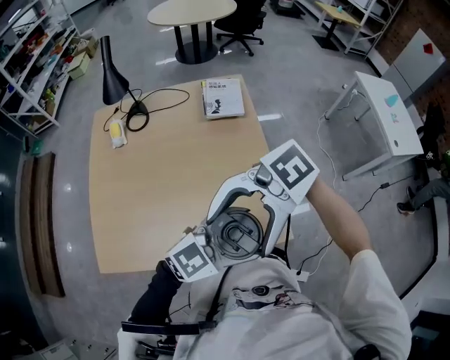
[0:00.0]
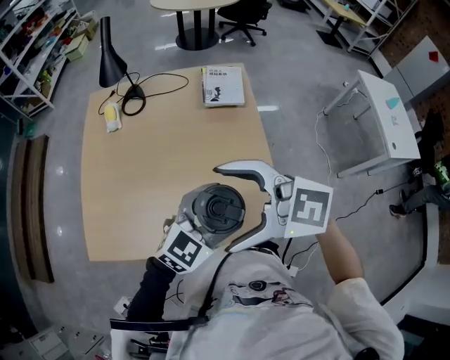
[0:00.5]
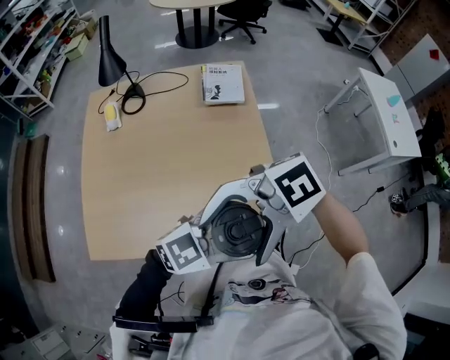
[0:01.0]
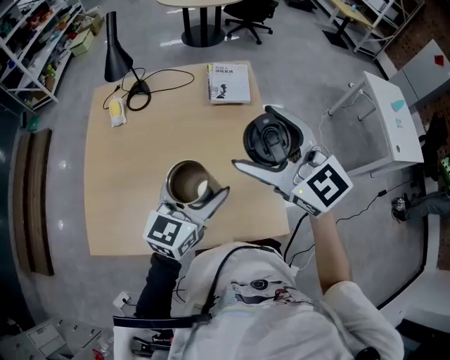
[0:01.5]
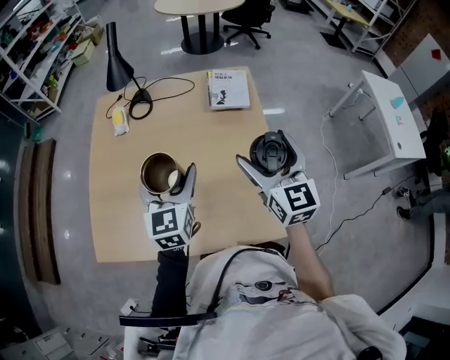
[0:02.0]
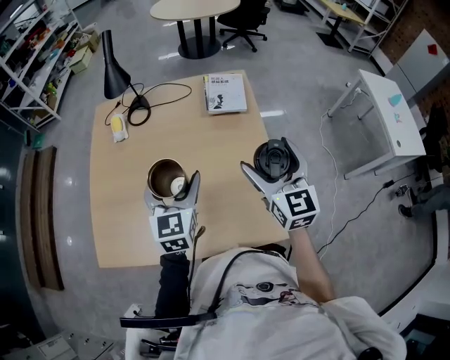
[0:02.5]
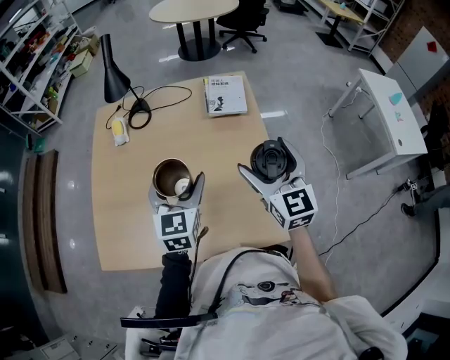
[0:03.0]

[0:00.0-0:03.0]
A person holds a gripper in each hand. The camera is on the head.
0:00.0 to 0:01.5: The right gripper shifts by about 20 cm, and swivels approximately 90 degrees, while the left gripper shifts by roughly 15 cm, and swivels approximately 50 degrees.
0:01.5 to 0:03.0: The left gripper shifts some 10 cm forward and to the left, and swivels roughly 30 degrees, while the right gripper goes about 10 cm downward and to the right, and turns by approximately 30 degrees.

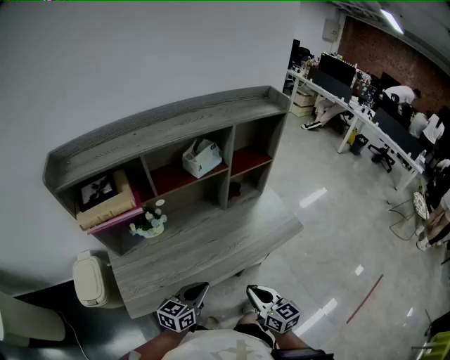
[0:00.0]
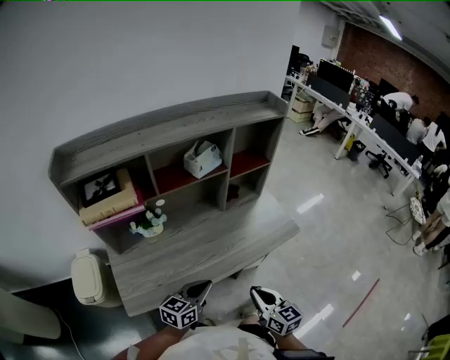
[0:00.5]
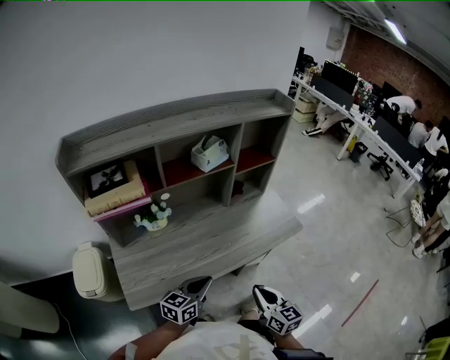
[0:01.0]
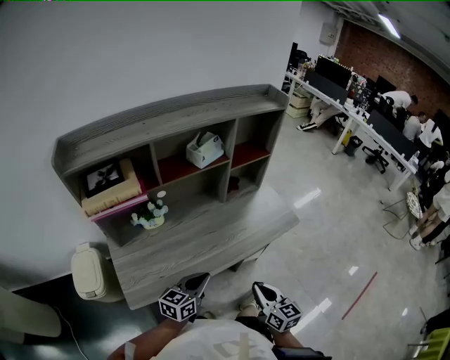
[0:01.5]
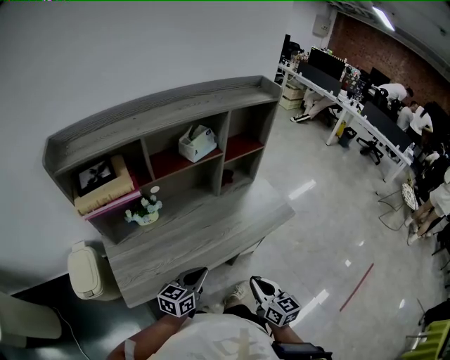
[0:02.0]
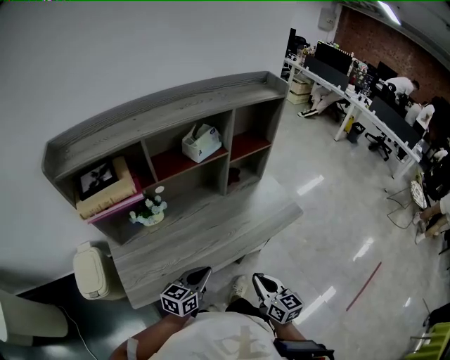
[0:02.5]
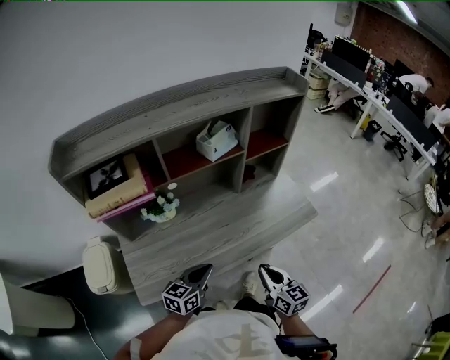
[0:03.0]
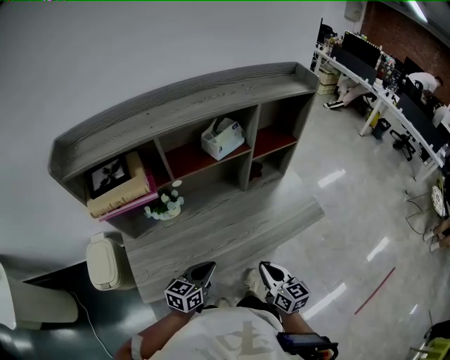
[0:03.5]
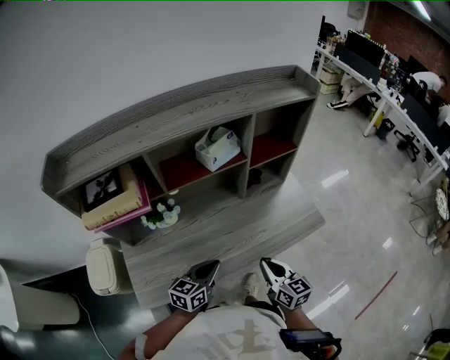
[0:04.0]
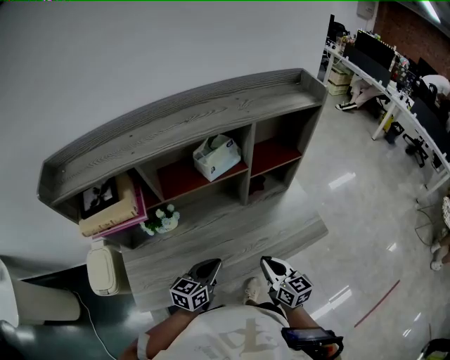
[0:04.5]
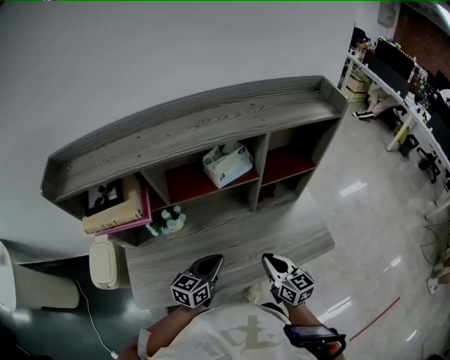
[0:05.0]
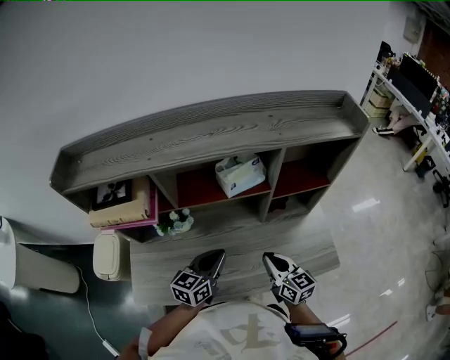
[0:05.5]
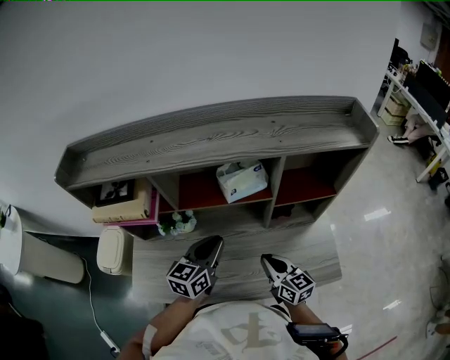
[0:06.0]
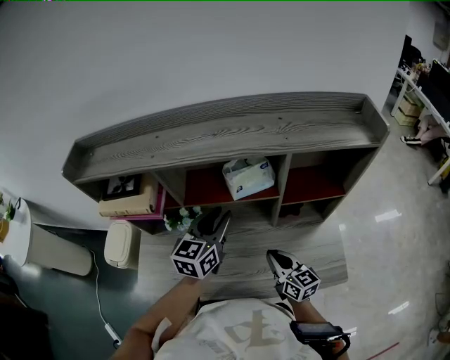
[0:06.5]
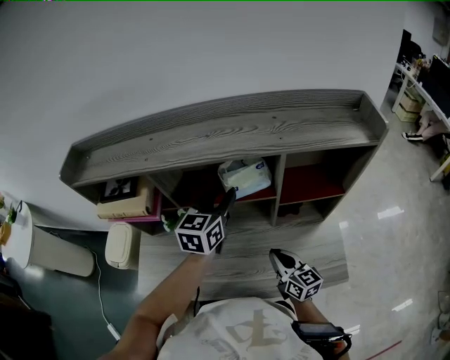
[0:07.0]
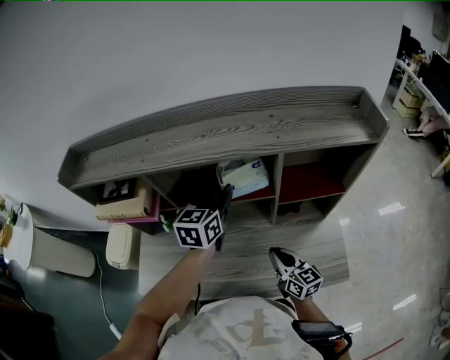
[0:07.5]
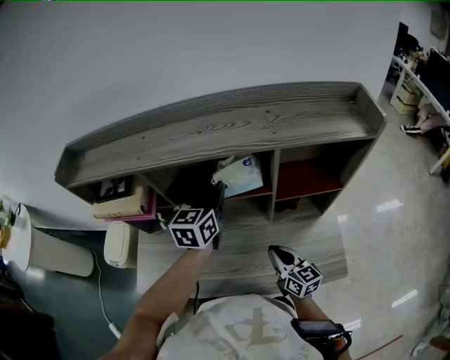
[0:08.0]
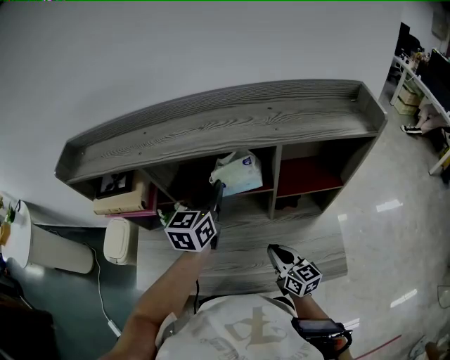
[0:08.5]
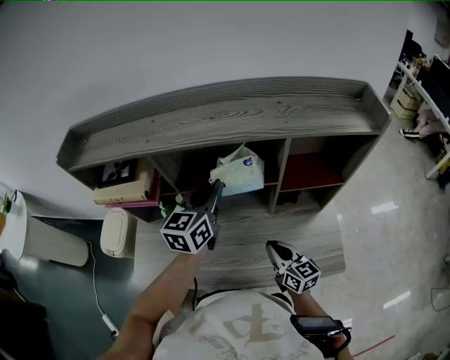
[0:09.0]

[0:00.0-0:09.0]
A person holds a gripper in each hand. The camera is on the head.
0:00.0 to 0:02.0: The grippers stay close to where they were, moving slightly.
0:02.0 to 0:04.5: The two grippers go about 20 cm forward.
0:04.5 to 0:07.0: The right gripper moves approximately 15 cm, and turns by some 20 degrees. Meanwhile the left gripper ends up approximately 30 cm from where it was, changes its angle by roughly 30 degrees, and opens.
0:07.0 to 0:09.0: The left gripper closes.

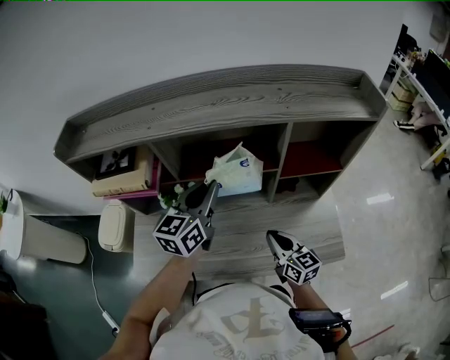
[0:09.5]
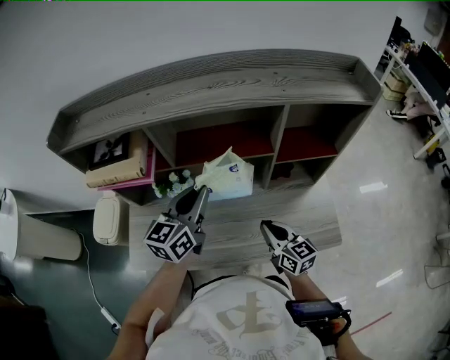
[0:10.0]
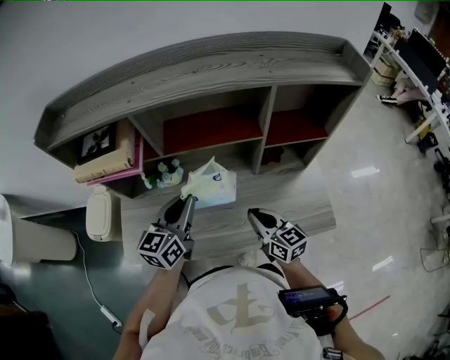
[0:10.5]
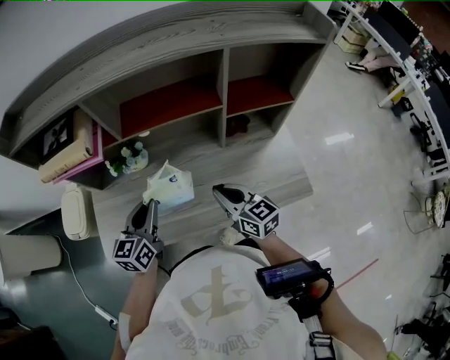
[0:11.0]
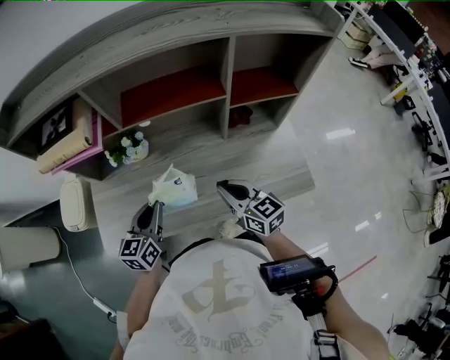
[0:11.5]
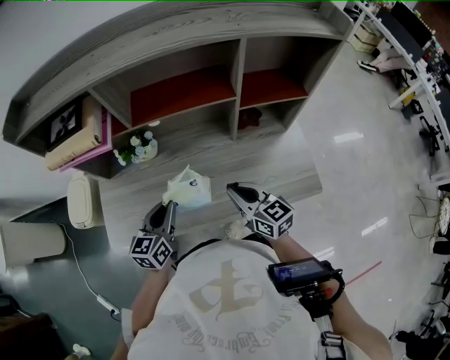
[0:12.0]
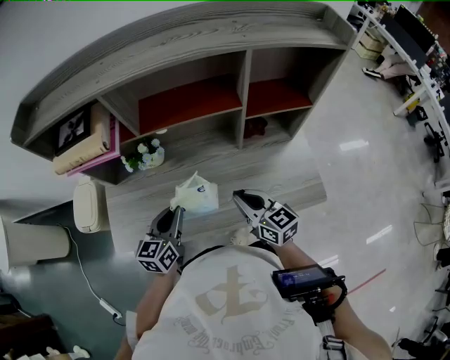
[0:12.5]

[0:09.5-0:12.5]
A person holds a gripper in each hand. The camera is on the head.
0:09.5 to 0:11.0: The left gripper goes approximately 20 cm downward, backward and to the left. Meanwhile the right gripper ends up roughly 5 cm from where it was.
0:11.0 to 0:12.5: The left gripper changes place by approximately 5 cm.

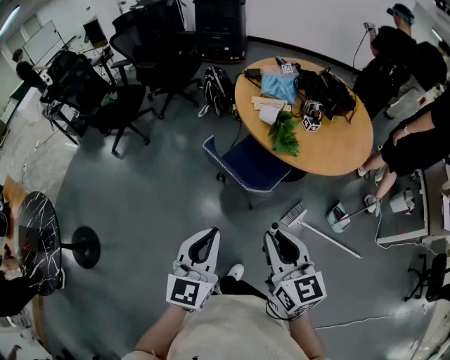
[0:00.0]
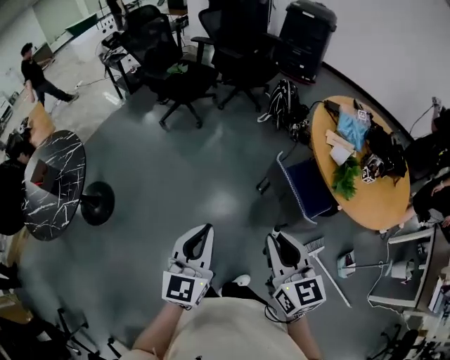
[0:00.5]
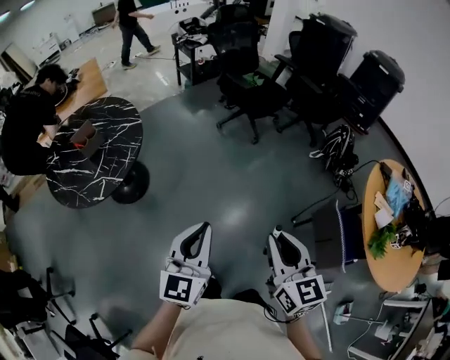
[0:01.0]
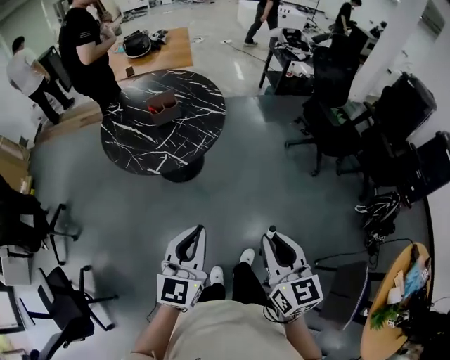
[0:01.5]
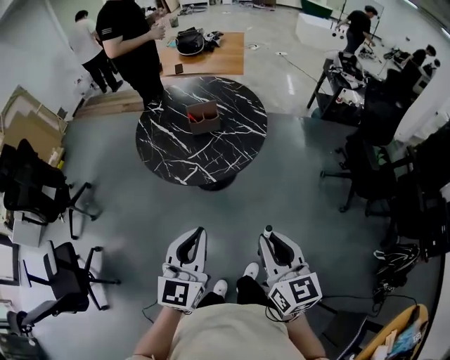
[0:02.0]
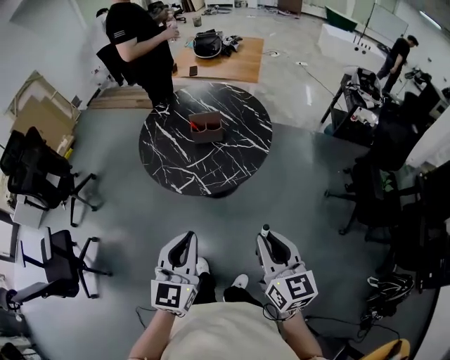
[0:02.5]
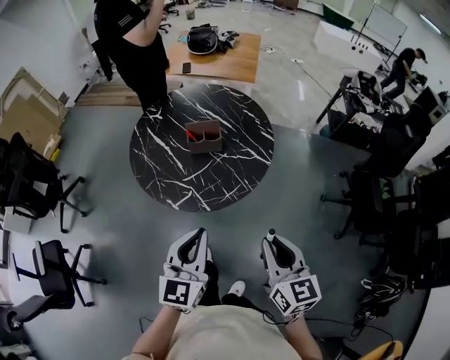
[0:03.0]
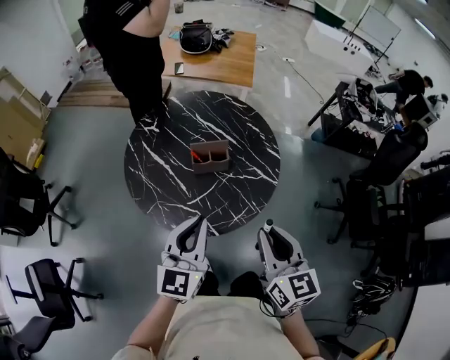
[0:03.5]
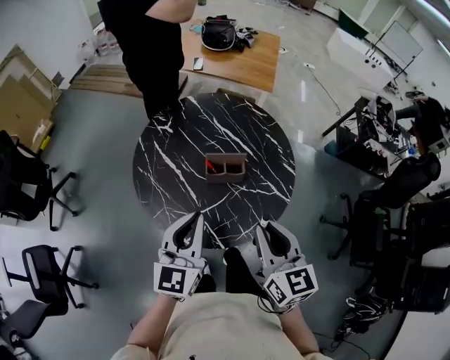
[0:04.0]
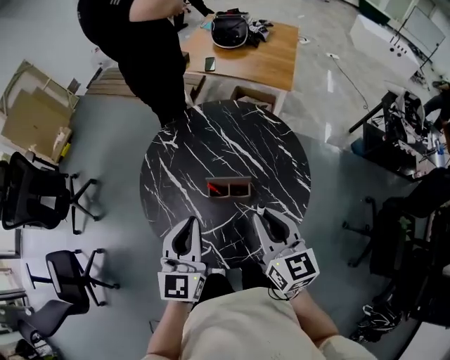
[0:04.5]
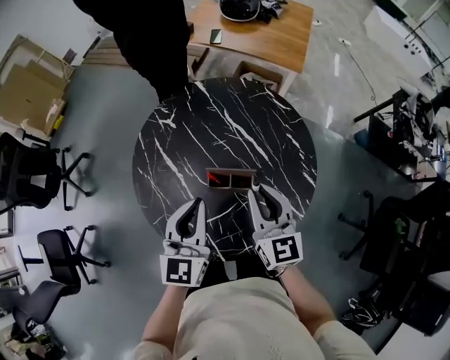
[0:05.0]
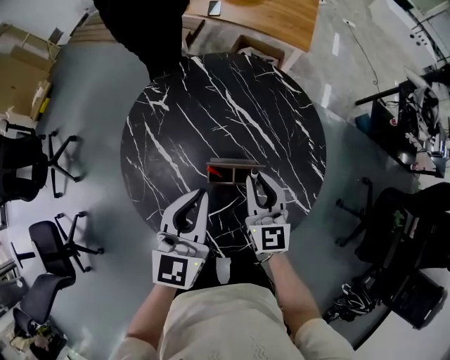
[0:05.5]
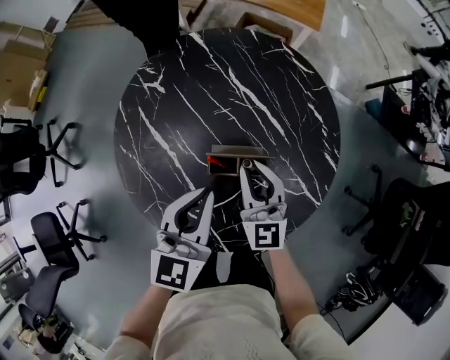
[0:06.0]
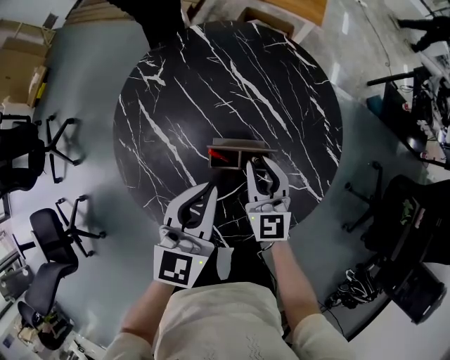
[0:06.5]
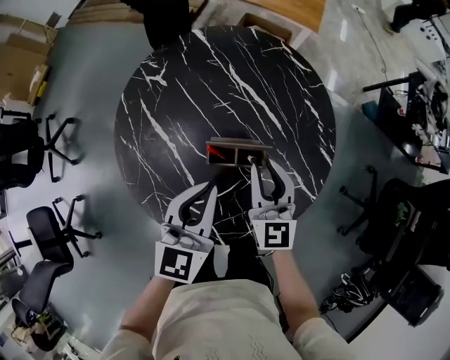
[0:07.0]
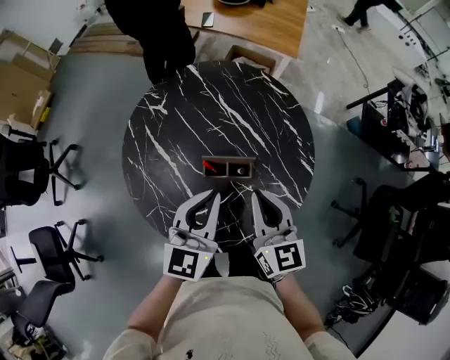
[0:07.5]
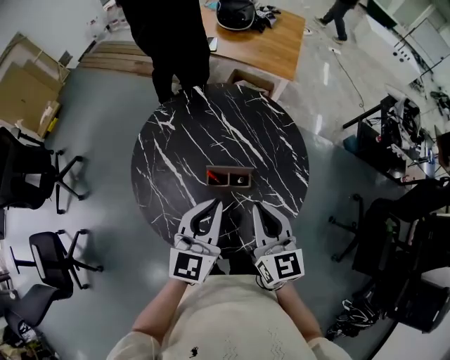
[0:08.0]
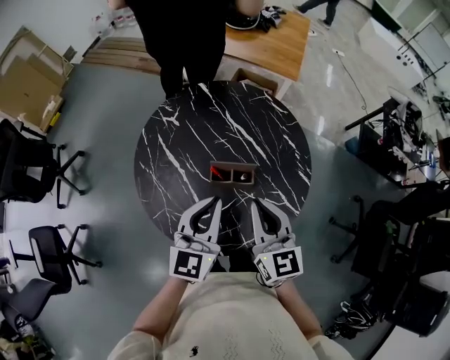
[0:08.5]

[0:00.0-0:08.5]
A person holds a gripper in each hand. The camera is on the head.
0:00.0 to 0:02.0: The two grippers travel together, approximately 80 cm. The right gripper changes its angle by some 80 degrees, while the left gripper rotates some 80 degrees.
0:02.0 to 0:04.0: The two grippers travel together, forward, about 40 cm.
0:04.0 to 0:06.5: The right gripper travels forward and downward by roughly 35 cm. The left gripper travels forward and downward by roughly 25 cm.
0:06.5 to 0:08.5: The left gripper shifts approximately 15 cm upward and backward, while the right gripper heads upward and backward, covering approximately 20 cm.

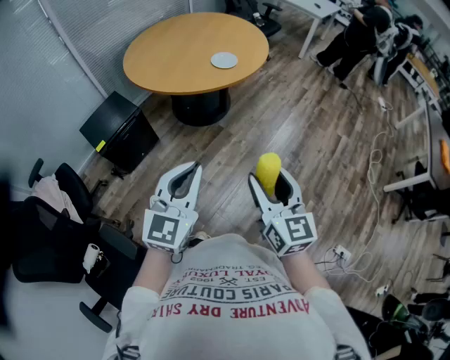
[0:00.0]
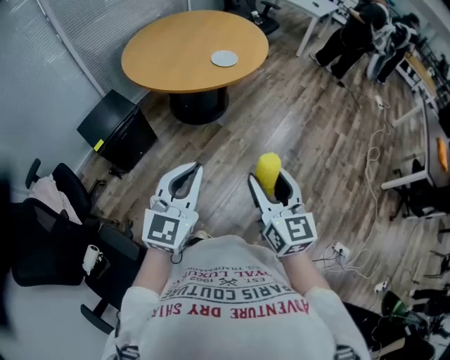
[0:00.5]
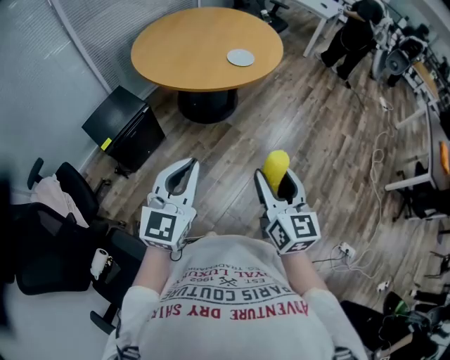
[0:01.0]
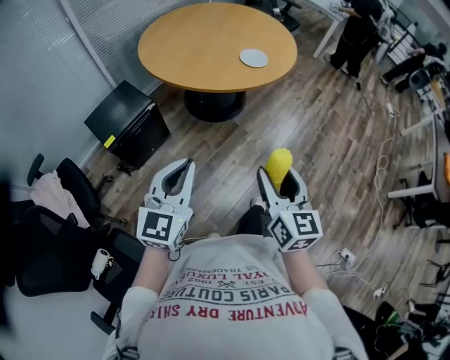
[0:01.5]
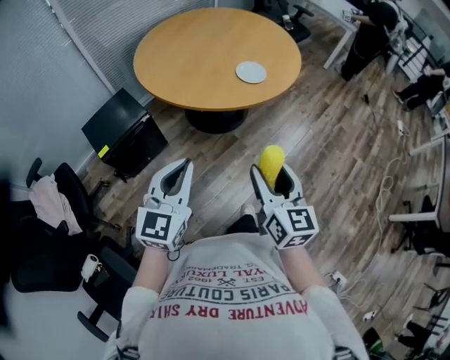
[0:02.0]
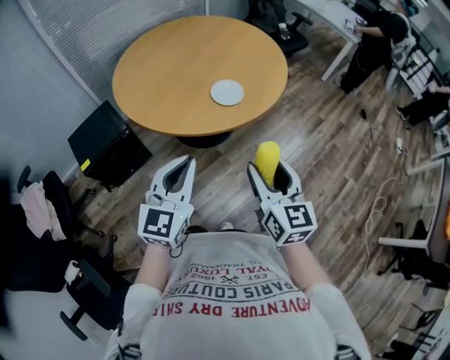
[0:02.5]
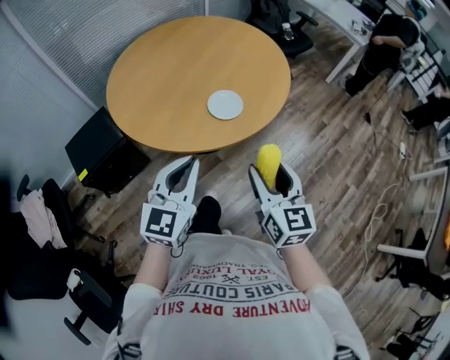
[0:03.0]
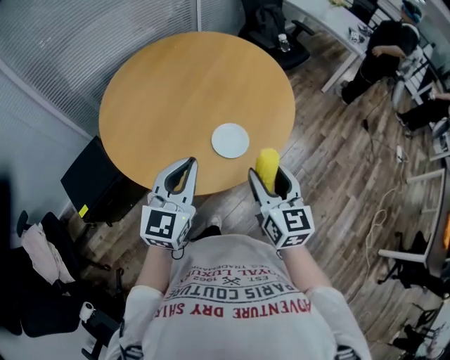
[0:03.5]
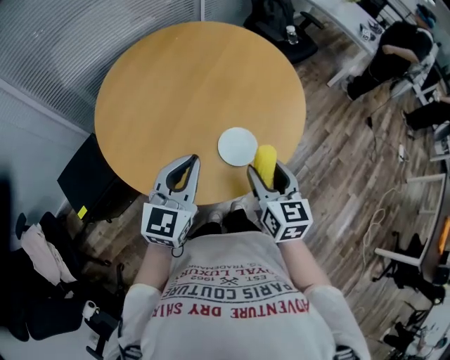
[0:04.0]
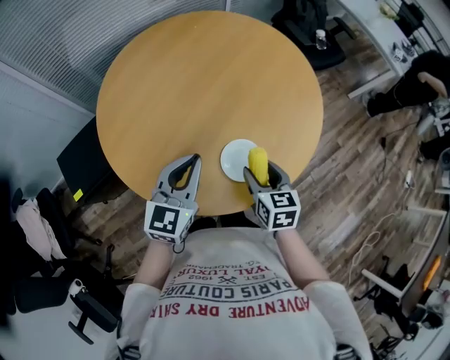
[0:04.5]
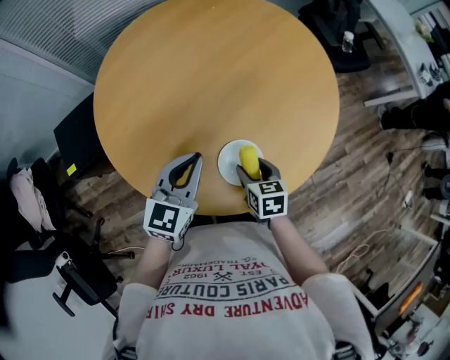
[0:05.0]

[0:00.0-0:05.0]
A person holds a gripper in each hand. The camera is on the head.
0:00.0 to 0:02.5: Both grippers move forward, roughly 35 cm.
0:02.5 to 0:05.0: Both grippers are carried forward, approximately 40 cm. The right gripper shifts some 25 cm downward, and tips its fingers downward by some 40 degrees.
